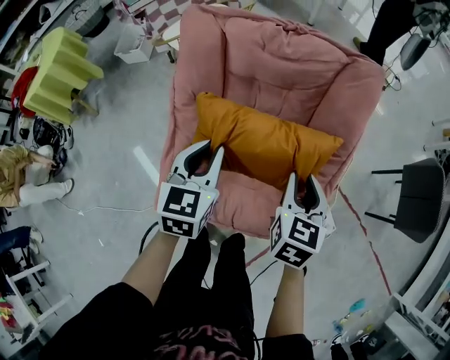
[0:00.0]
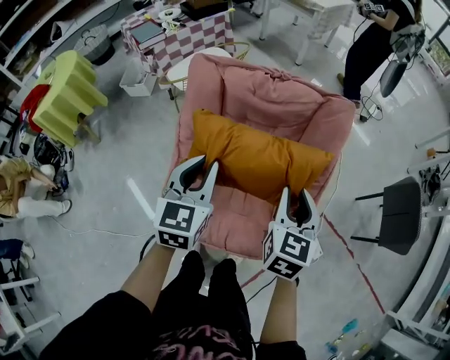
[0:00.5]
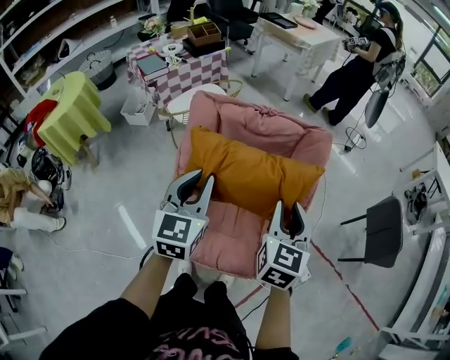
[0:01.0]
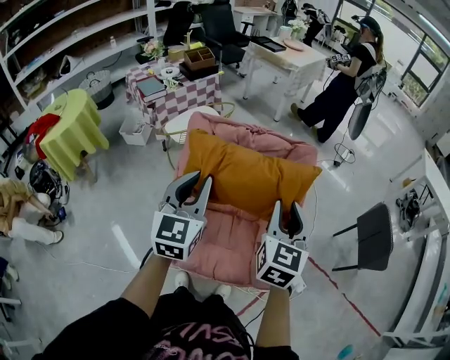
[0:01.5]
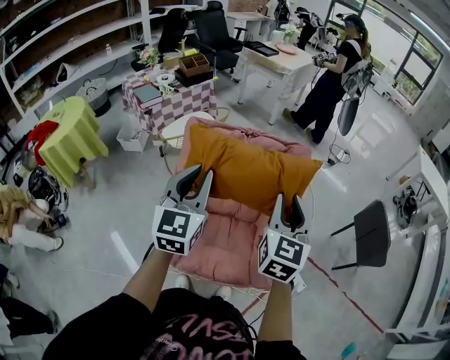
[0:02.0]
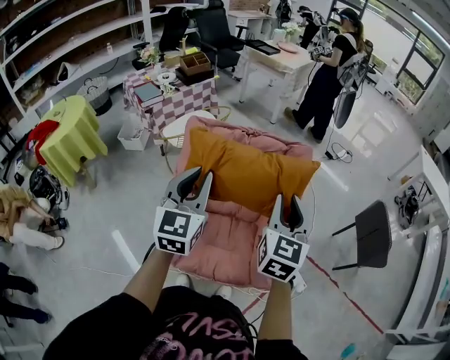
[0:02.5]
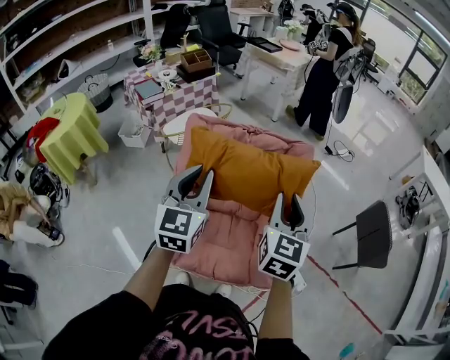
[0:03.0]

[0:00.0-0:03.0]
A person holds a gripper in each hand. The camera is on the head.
0:00.0 to 0:01.5: The two grippers go about 25 cm upward. The left gripper swivels approximately 20 degrees, while the right gripper changes its angle by approximately 20 degrees.
0:01.5 to 0:03.0: The grippers make only small movements.

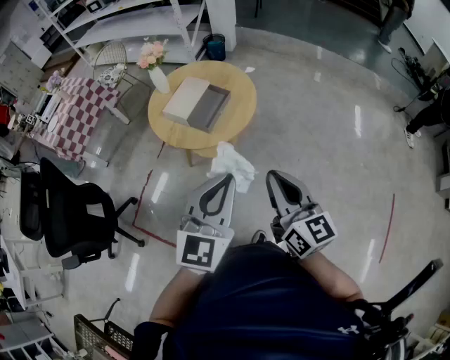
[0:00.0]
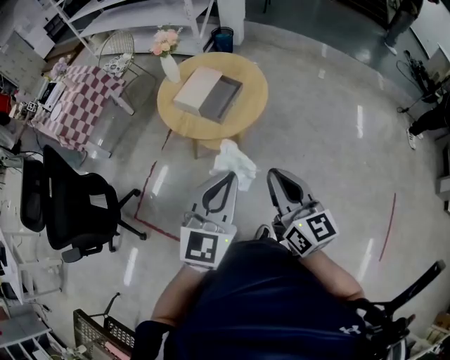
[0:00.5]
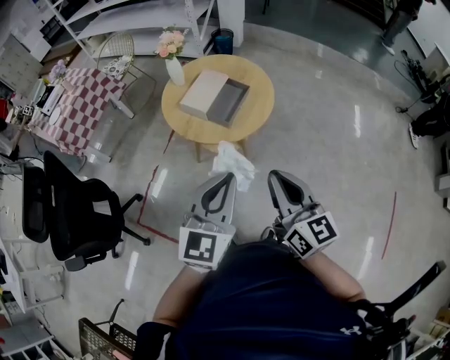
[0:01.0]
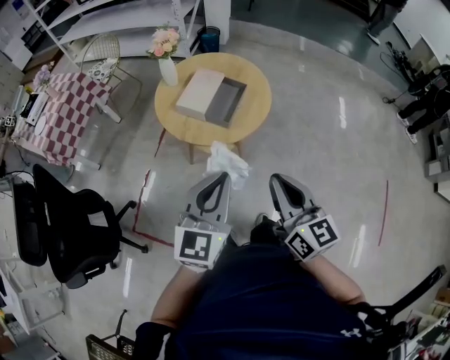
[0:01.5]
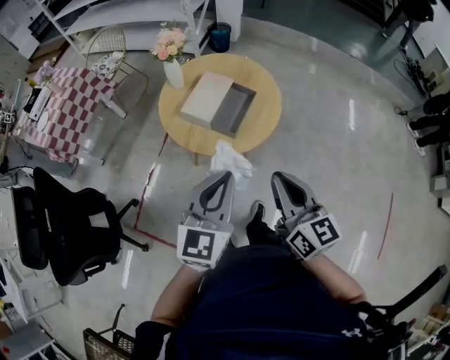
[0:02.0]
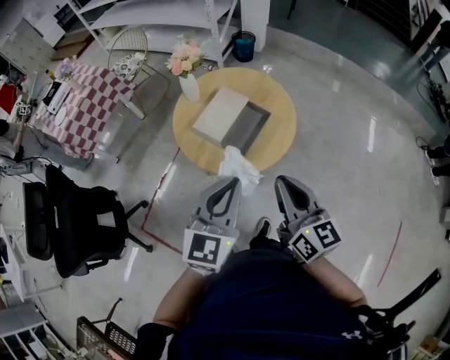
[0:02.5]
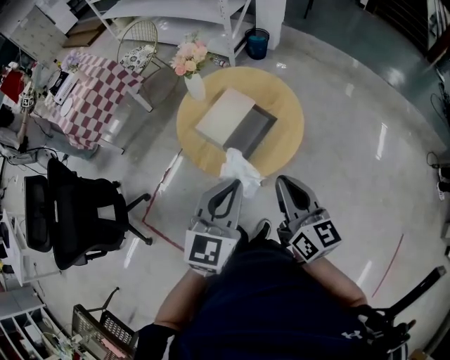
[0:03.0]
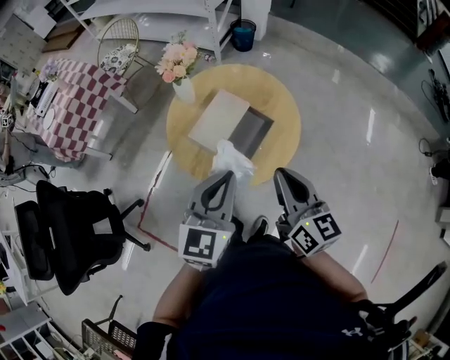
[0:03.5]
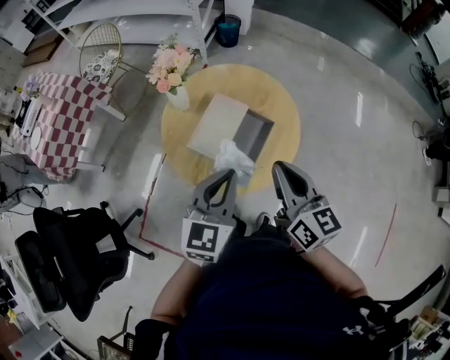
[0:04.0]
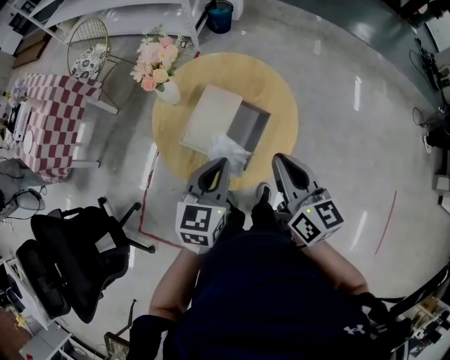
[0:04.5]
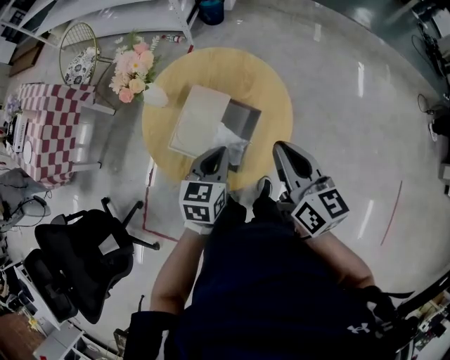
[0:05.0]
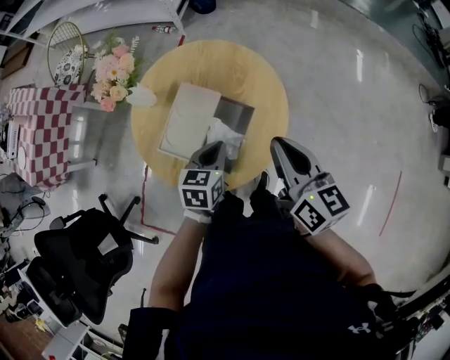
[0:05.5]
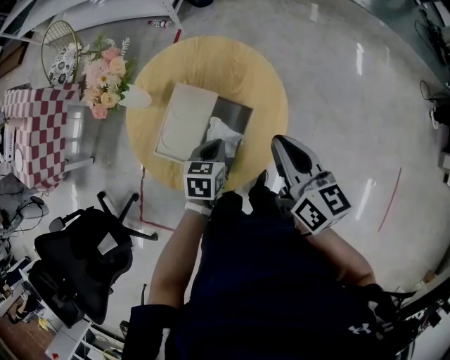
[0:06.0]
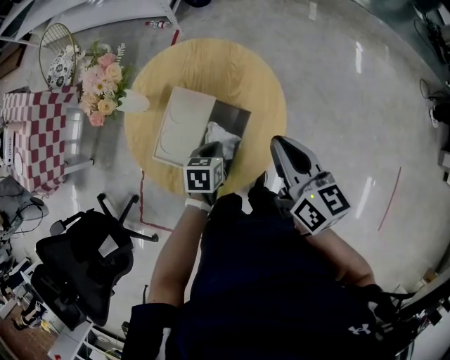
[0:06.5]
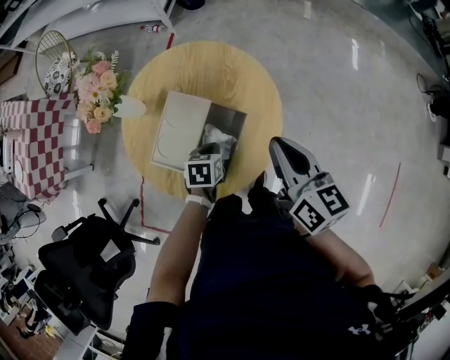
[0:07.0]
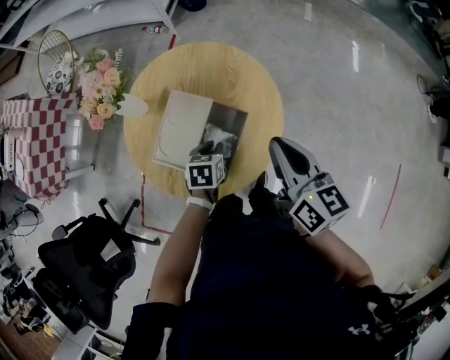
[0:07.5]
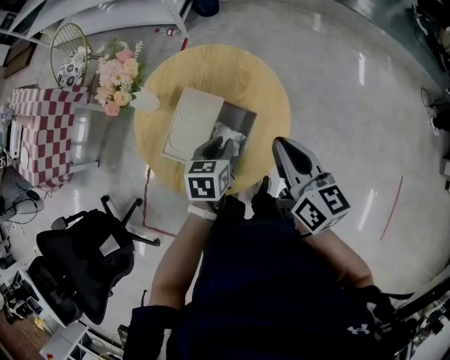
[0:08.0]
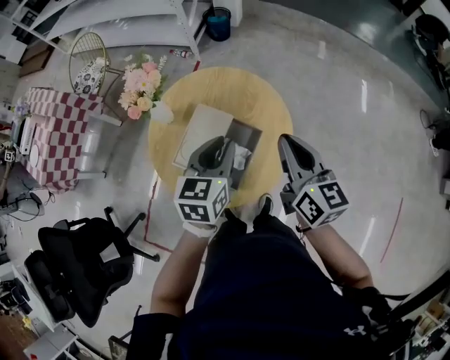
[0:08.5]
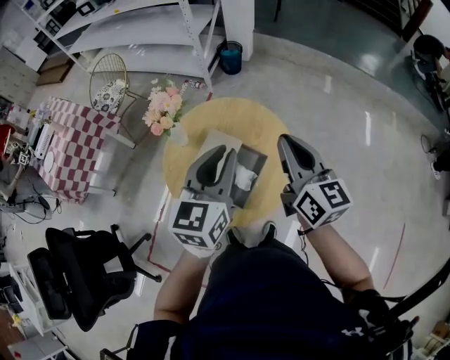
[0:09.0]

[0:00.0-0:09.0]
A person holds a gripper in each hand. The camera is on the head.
0:00.0 to 0:02.0: The grippers both shift to the left and forward by approximately 20 cm.
0:02.0 to 0:04.5: The two grippers go roughly 25 cm forward.
0:04.5 to 0:07.0: The left gripper travels downward and forward by some 25 cm, and angles its fingers downward, by roughly 40 degrees; the right gripper travels forward and to the right by roughly 15 cm.
0:07.0 to 0:09.0: The right gripper shifts approximately 15 cm upward, and swivels about 20 degrees. The left gripper heads upward, covering approximately 40 cm, and angles its fingers upward, by approximately 50 degrees.

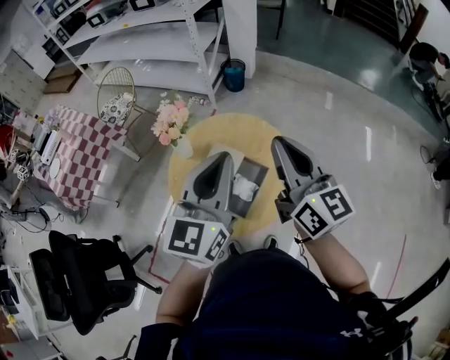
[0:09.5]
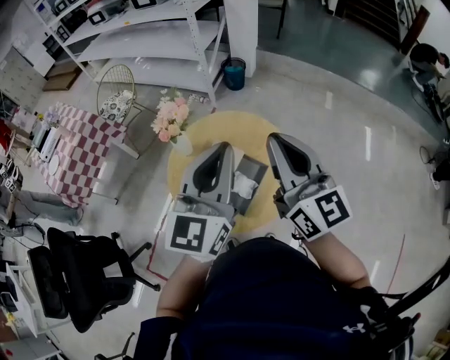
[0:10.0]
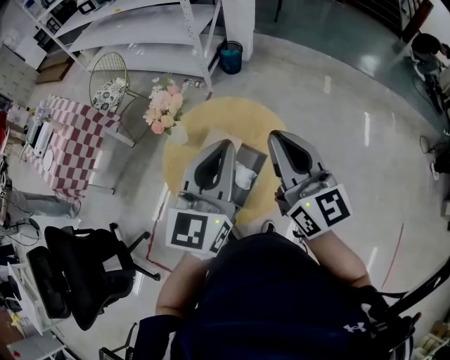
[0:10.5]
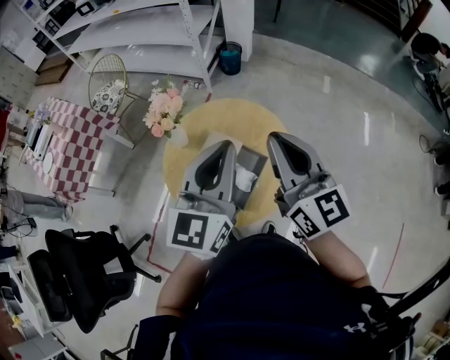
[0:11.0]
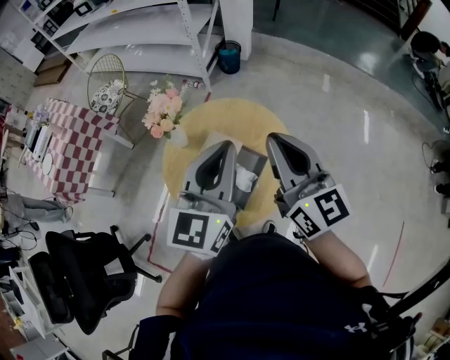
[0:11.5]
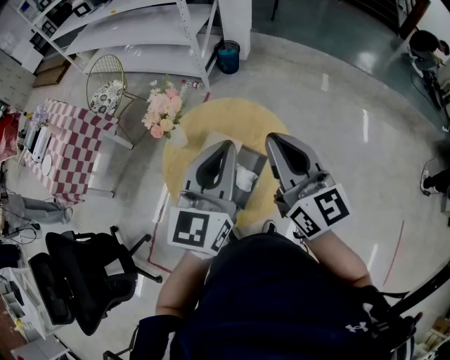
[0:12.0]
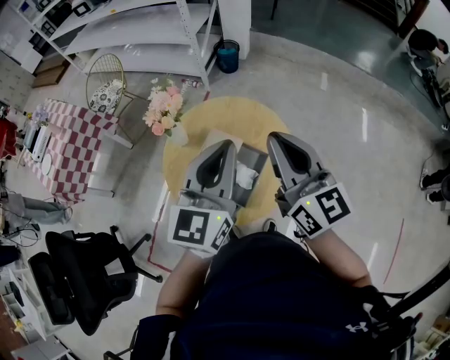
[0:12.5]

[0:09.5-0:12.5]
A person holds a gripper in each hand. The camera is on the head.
0:09.5 to 0:11.0: The grippers stay close to where they were, moving slightly.
0:11.0 to 0:12.5: Both grippers stay about where they are.

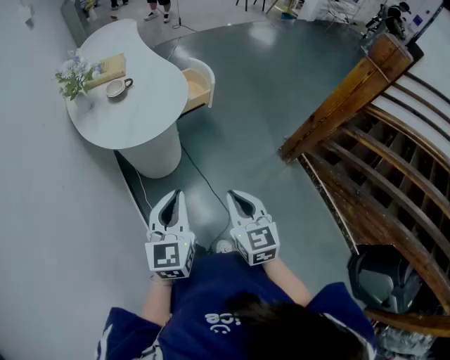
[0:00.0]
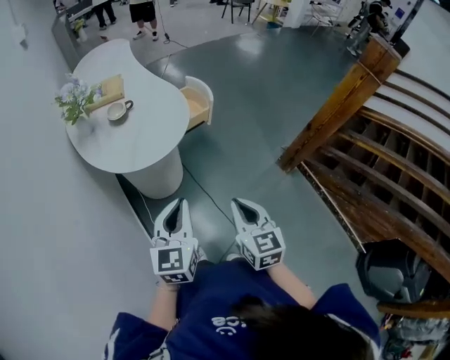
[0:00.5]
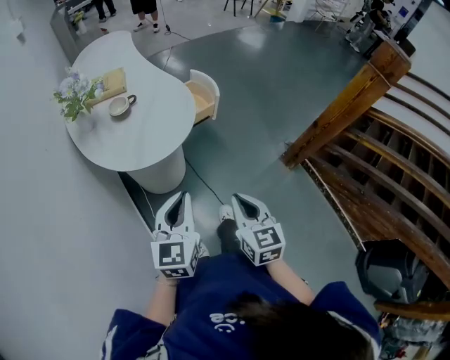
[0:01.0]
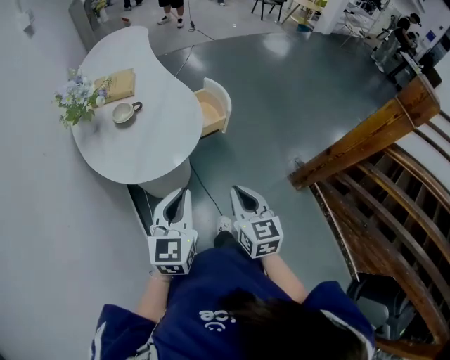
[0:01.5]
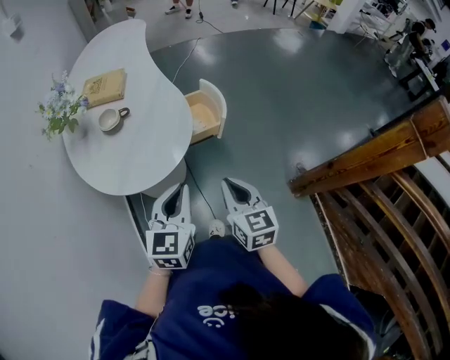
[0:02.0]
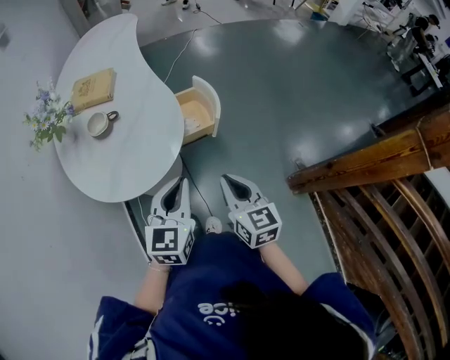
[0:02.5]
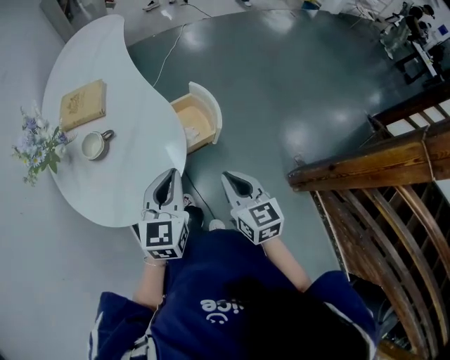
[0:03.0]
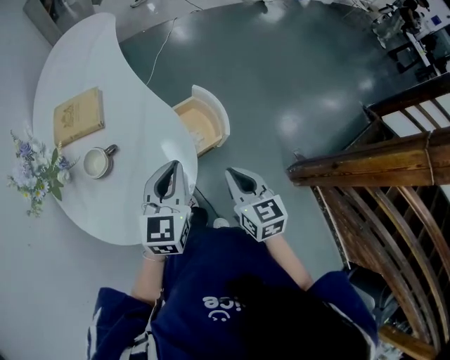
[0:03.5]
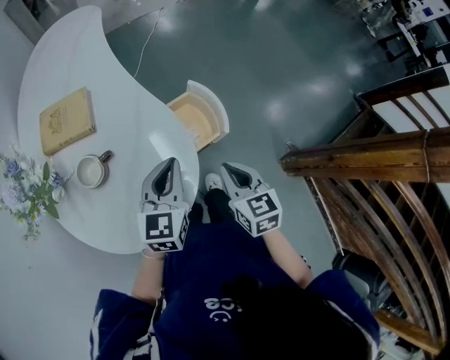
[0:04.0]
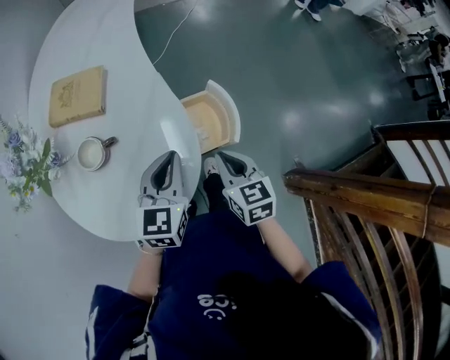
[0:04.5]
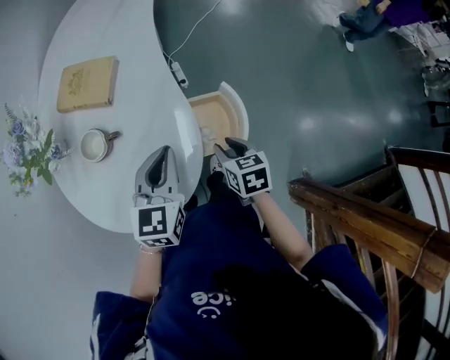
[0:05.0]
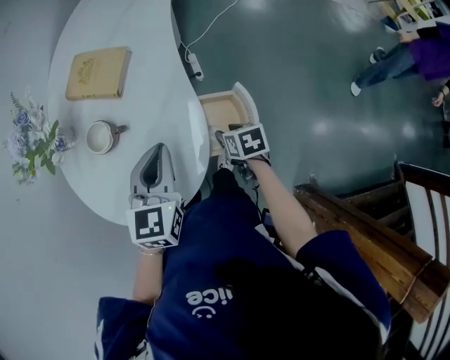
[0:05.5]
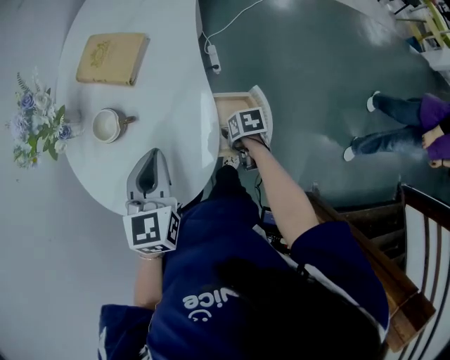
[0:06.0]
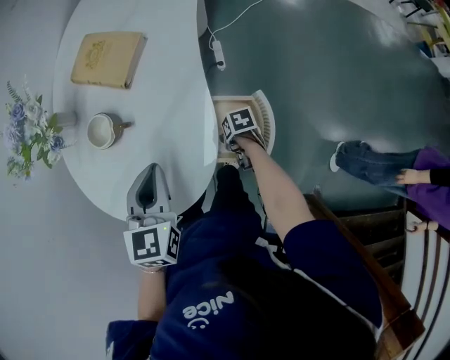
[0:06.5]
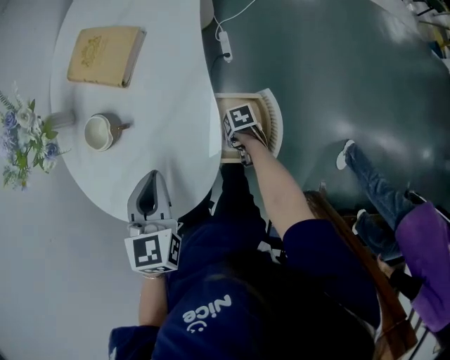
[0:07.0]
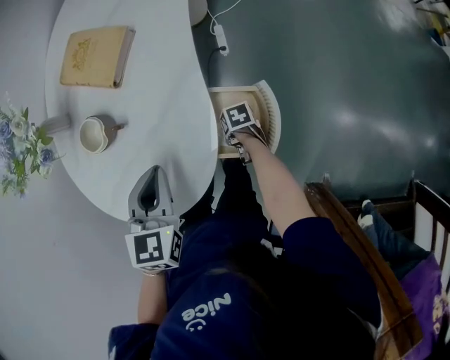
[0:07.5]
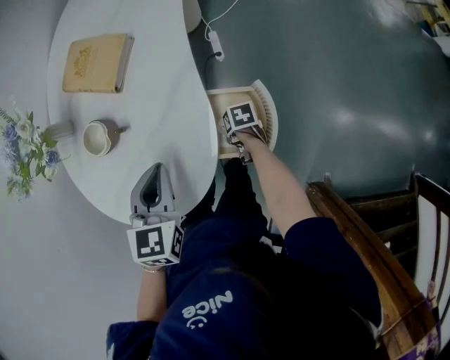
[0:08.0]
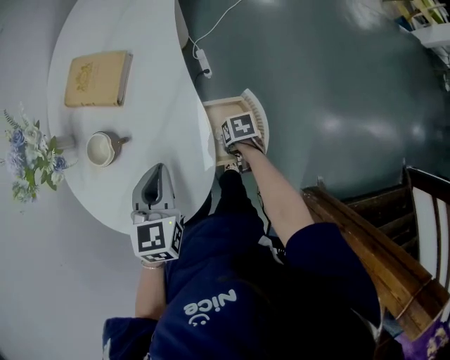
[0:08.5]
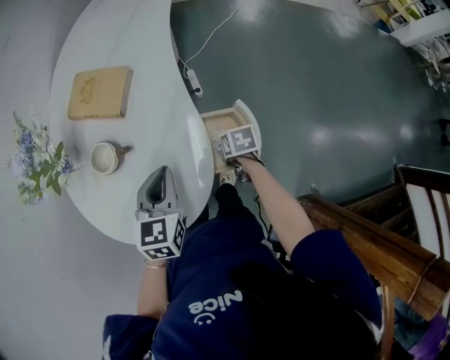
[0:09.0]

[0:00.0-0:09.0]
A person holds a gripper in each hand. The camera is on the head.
0:00.0 to 0:02.0: Both grippers move forward, approximately 25 cm.
0:02.0 to 0:04.5: Both grippers travel together forward, some 30 cm.
0:04.5 to 0:07.0: The left gripper ends up about 5 cm from where it was, and changes its angle by about 40 degrees. Meanwhile the right gripper moves downward, approximately 30 cm, swivels some 70 degrees, and opens up.
0:07.0 to 0:09.0: The right gripper shifts some 15 cm upward, turns by approximately 30 degrees, and closes.

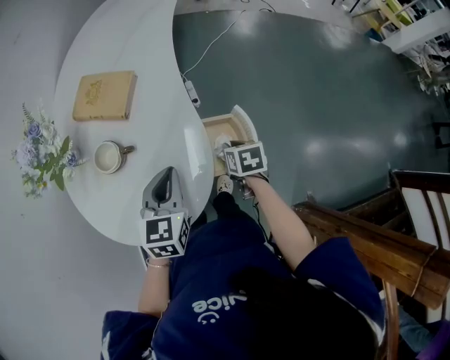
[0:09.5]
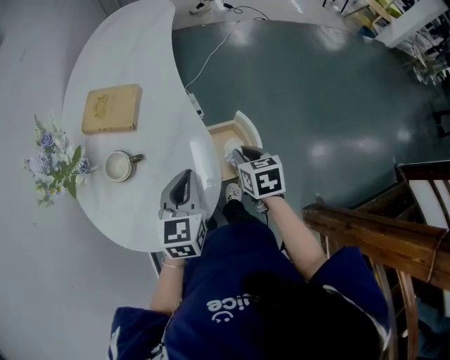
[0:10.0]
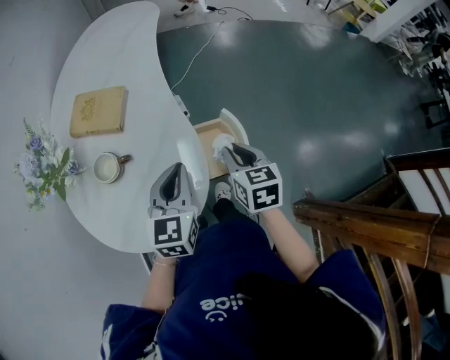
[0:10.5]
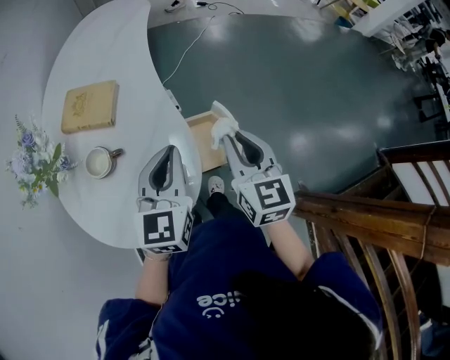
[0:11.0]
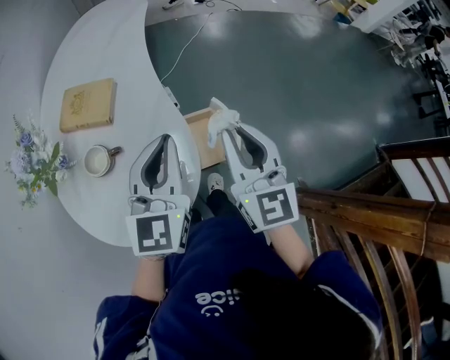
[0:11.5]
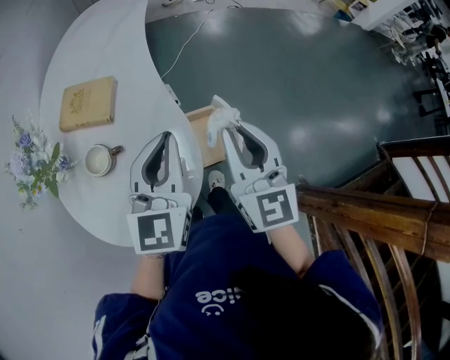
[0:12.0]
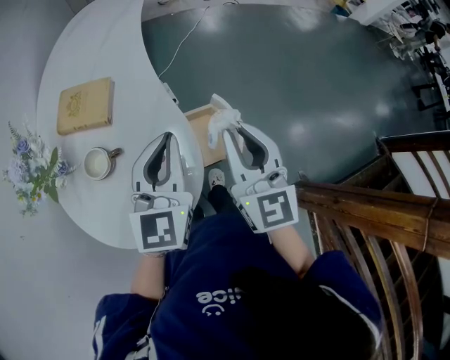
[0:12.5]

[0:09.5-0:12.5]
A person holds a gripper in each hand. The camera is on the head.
0:09.5 to 0:11.0: The left gripper shifts some 10 cm upward. Meanwhile the right gripper is displaced upward by some 25 cm, and angles its fingers upward, by roughly 40 degrees.
0:11.0 to 0:12.5: The right gripper travels upward by roughly 5 cm.
